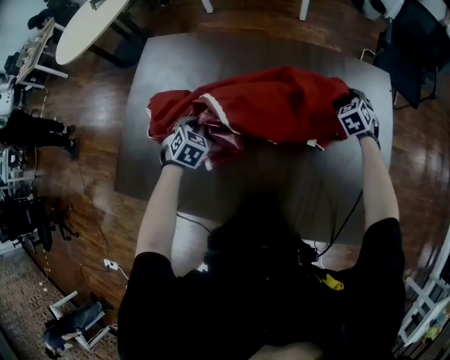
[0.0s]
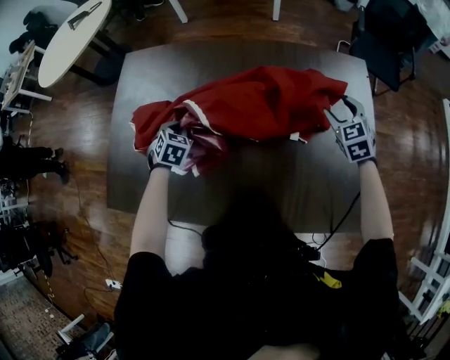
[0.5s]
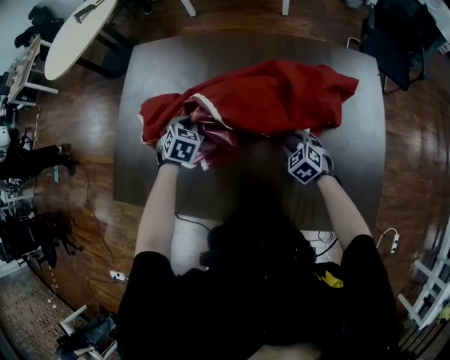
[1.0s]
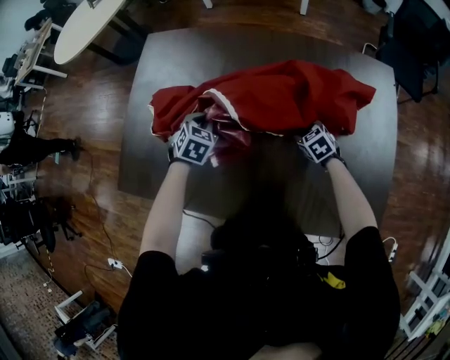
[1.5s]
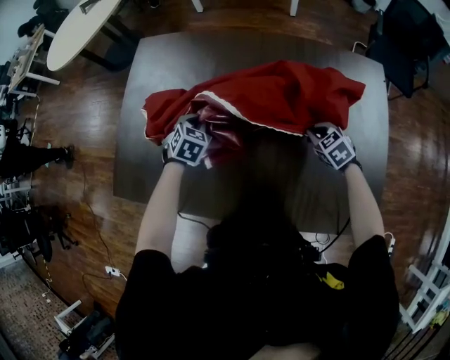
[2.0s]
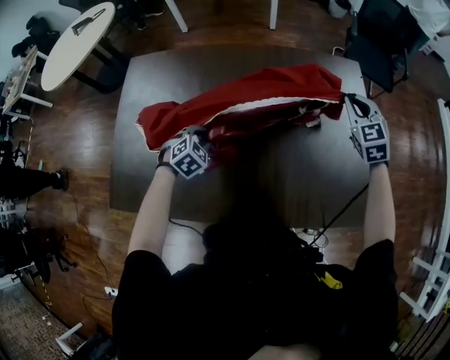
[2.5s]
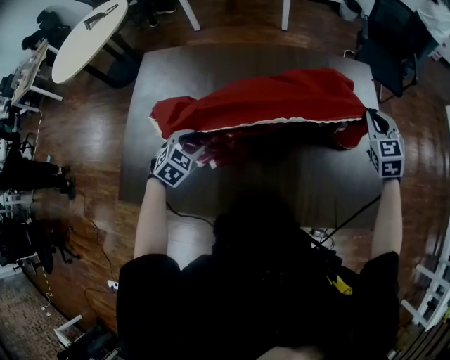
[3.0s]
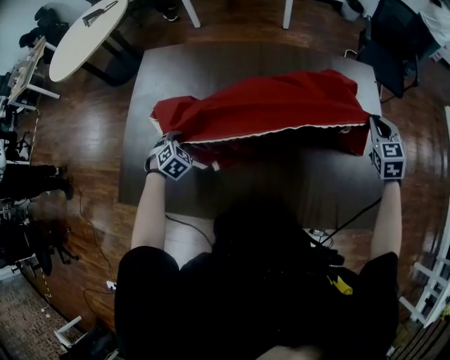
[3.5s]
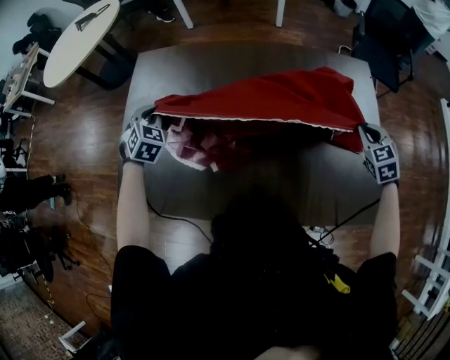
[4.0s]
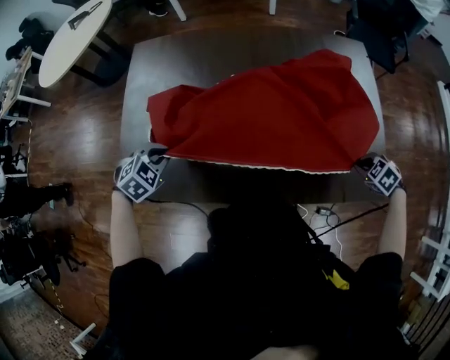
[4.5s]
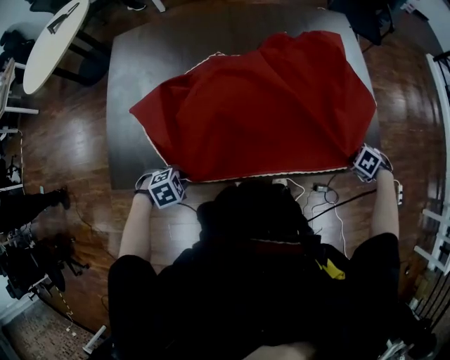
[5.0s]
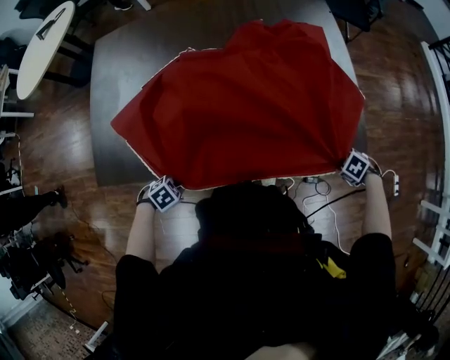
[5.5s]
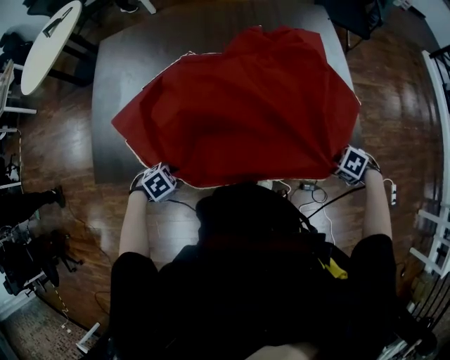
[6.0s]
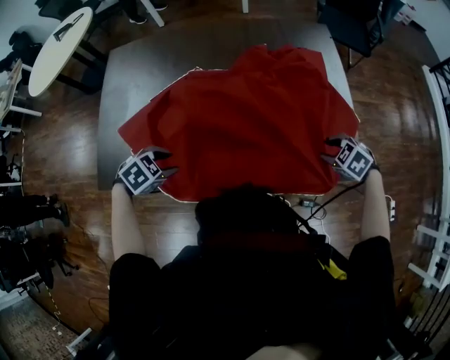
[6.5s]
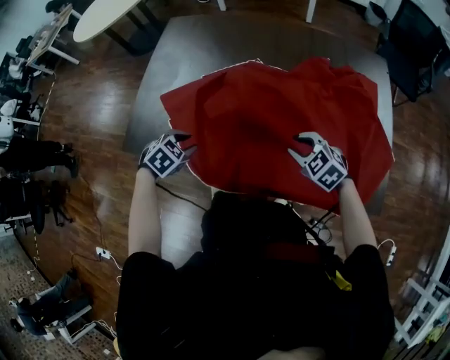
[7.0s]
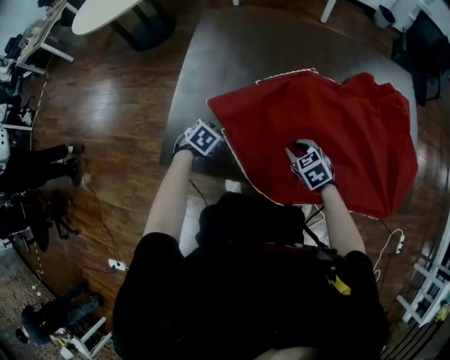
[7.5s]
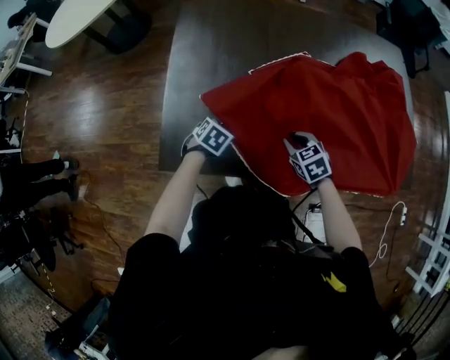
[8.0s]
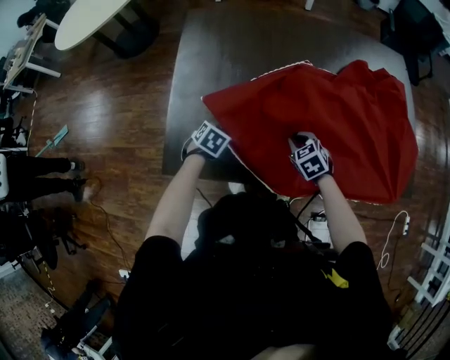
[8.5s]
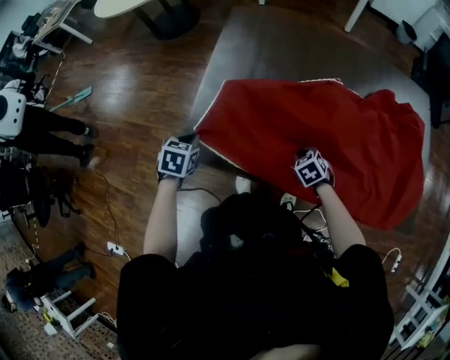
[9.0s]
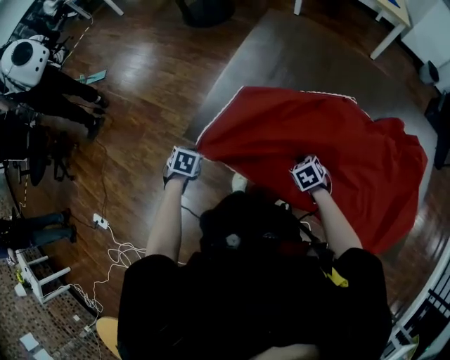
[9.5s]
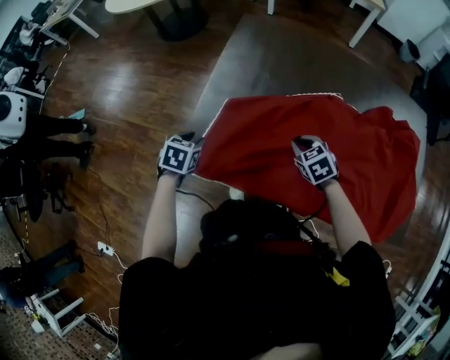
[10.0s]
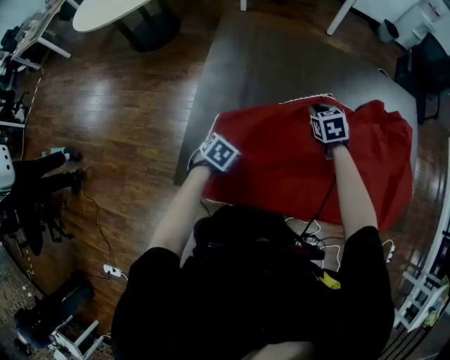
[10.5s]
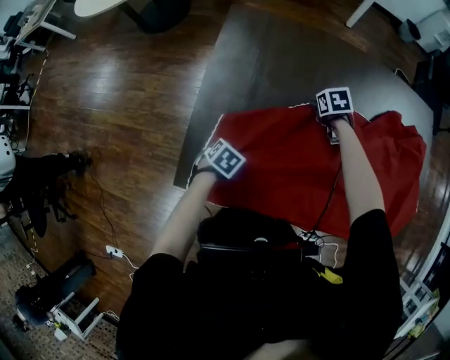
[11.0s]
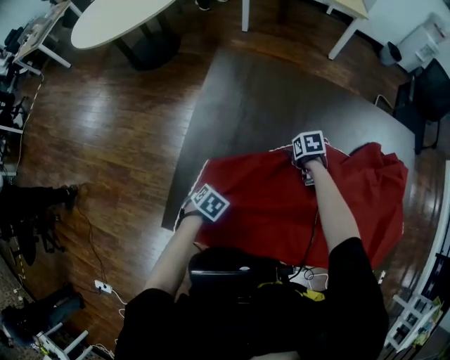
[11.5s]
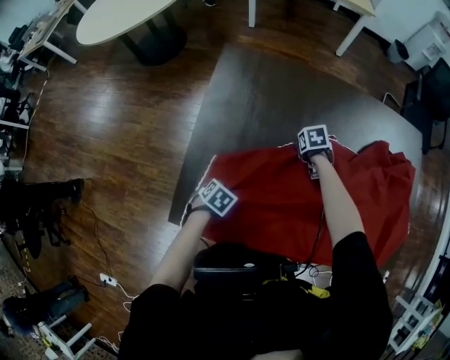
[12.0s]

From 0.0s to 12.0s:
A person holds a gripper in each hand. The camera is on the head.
From 0.0s to 2.0s: The right gripper goes up and down, about 20 cm each way, reversing 2 times, rotates some 30 degrees, and closes its fingers.
From 2.0s to 4.0s: The left gripper goes up and down, roughly 15 cm each way, reversing 2 times, swivels roughly 20 degrees, and opens, then closes again; the right gripper heads upward, covering approximately 15 cm, and turns by about 30 degrees.
From 4.0s to 6.0s: The left gripper changes place by approximately 40 cm, angles its fingers downward, by approximately 40 degrees, and opens up. The right gripper ends up roughly 40 cm from where it was, points its fingers about 30 degrees further downward, and opens its fingers.
From 6.0s to 8.0s: The left gripper goes upward and returns, roughly 10 cm each way, and changes its angle by approximately 30 degrees, while the right gripper travels upward and back again, approximately 10 cm each way, and swivels approximately 40 degrees.
From 8.0s to 10.0s: The right gripper changes place by some 10 cm. Meanwhile the left gripper moves up and down over roughly 10 cm, changing direction 2 times, changes its angle by roughly 30 degrees, and closes, then opens again.
From 10.0s to 12.0s: The left gripper changes place by approximately 15 cm, and turns by approximately 30 degrees. Meanwhile the right gripper ends up some 25 cm from where it was, rotates approximately 40 degrees, and opens its fingers.

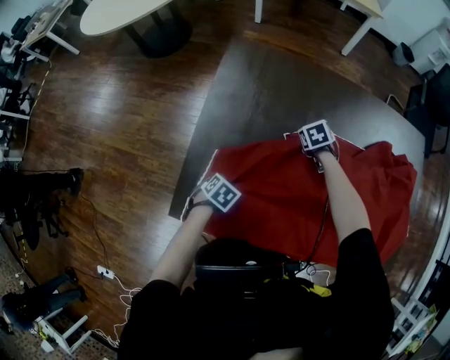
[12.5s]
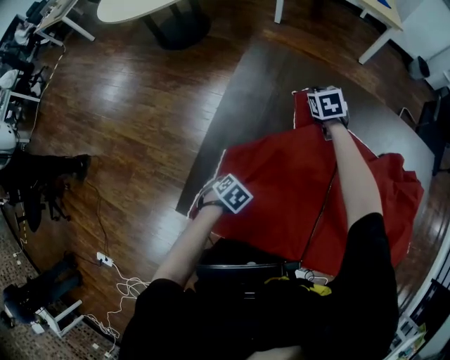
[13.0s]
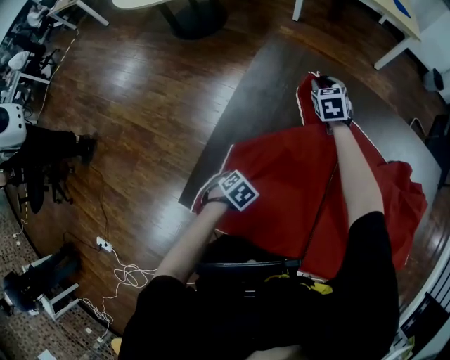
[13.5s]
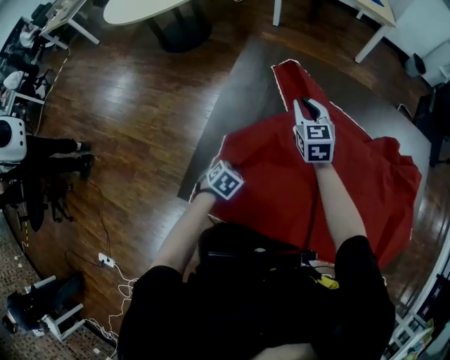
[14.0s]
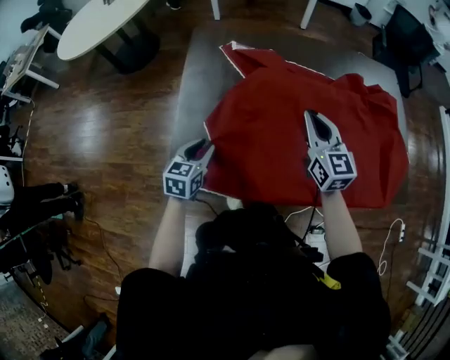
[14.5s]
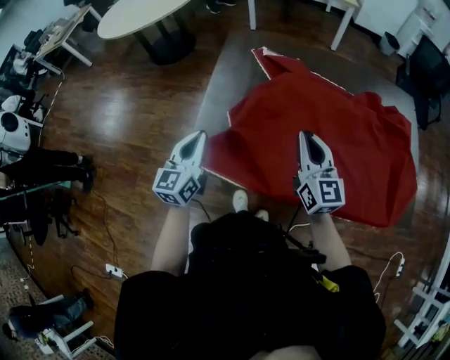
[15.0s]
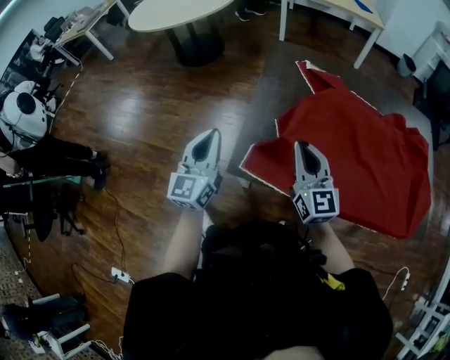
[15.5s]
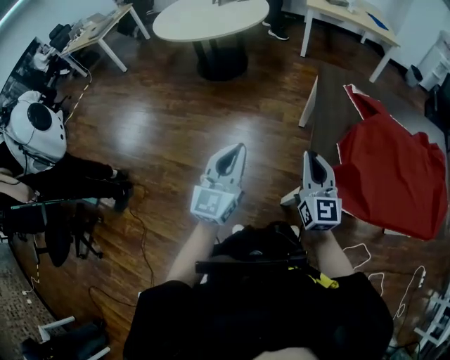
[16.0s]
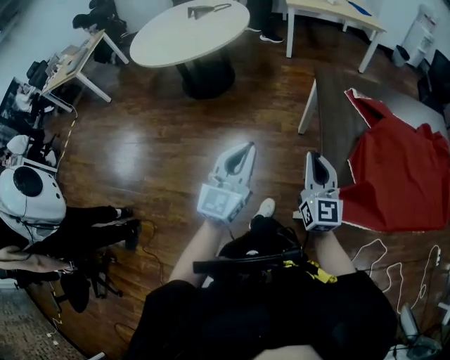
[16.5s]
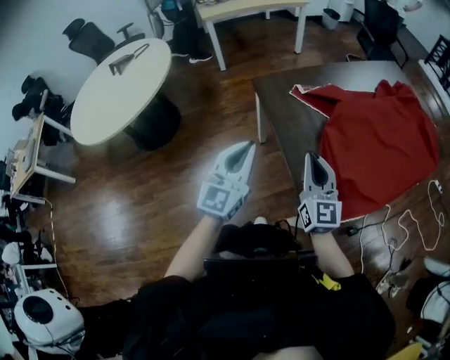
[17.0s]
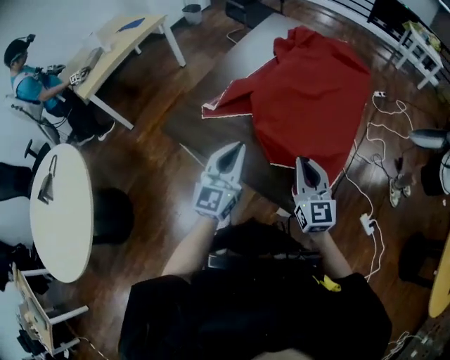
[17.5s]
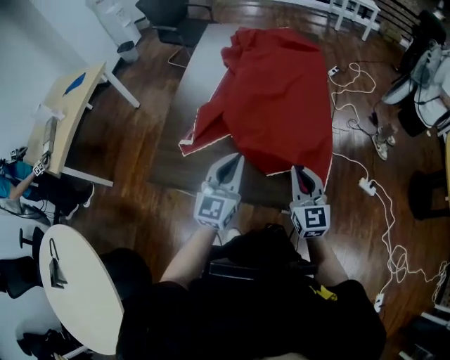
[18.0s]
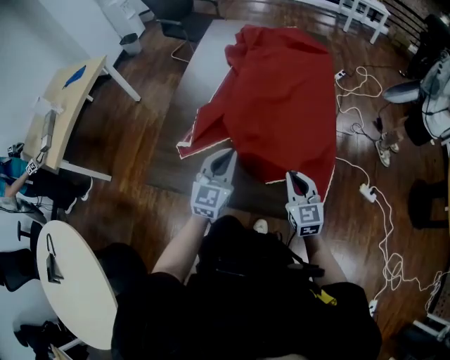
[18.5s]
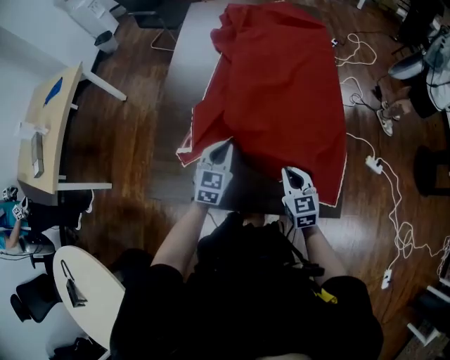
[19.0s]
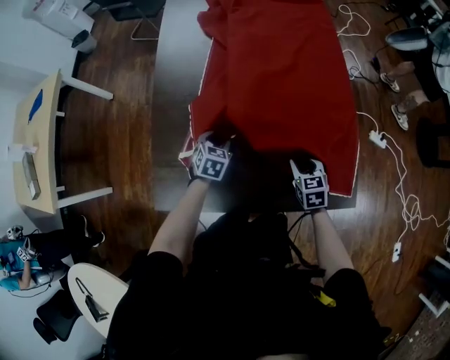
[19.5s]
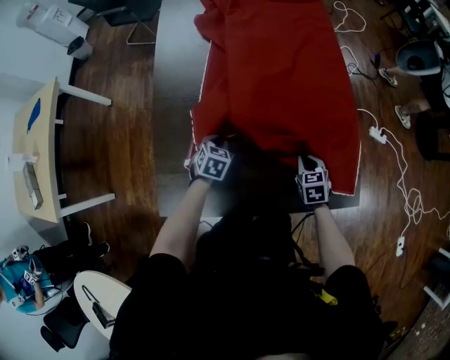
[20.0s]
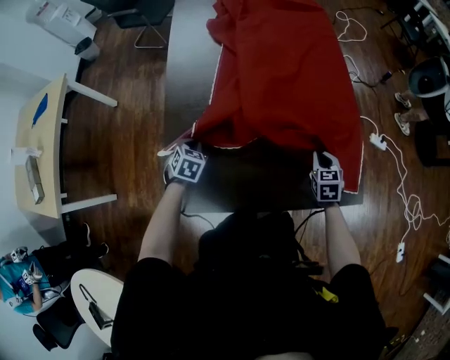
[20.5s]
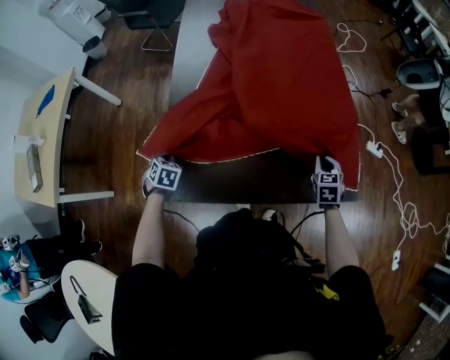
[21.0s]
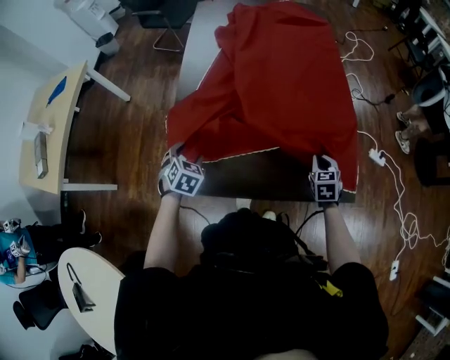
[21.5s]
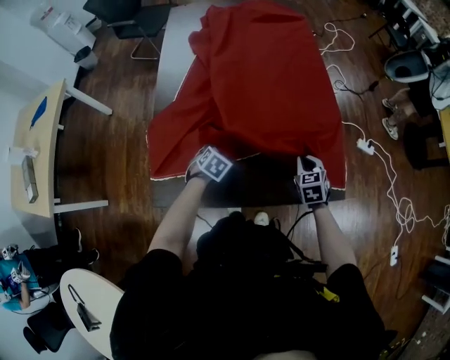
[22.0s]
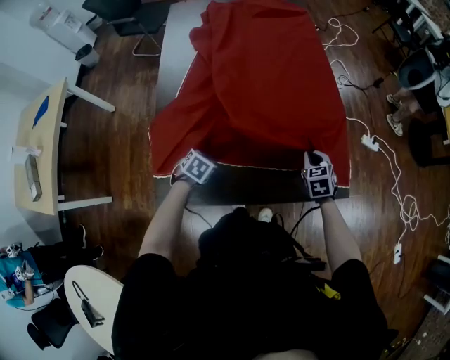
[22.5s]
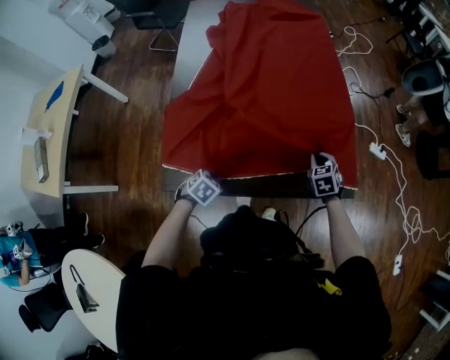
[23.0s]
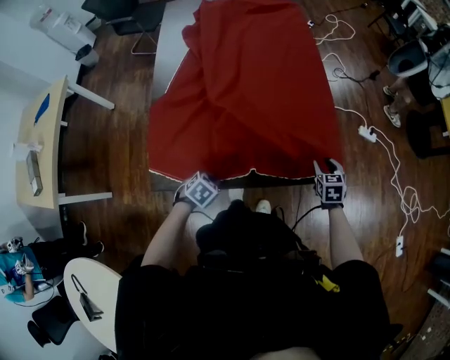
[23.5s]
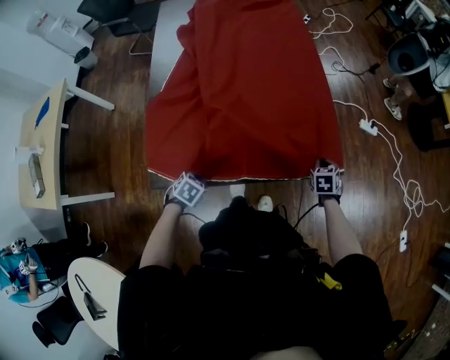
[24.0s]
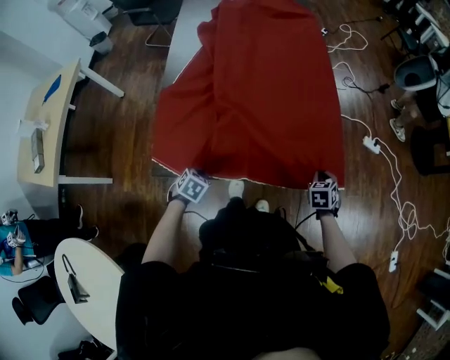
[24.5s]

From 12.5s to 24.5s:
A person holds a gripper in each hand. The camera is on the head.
From 12.5s to 14.5s: The right gripper heads upward, covering about 25 cm, and angles its fingers upward, by roughly 60 degrees; the left gripper shifts approximately 15 cm upward, and tilts its fingers about 40 degrees upward.
From 14.5s to 16.5s: Both grippers are carried to the left, approximately 50 cm. The left gripper heads upward, covering about 20 cm, and angles its fingers upward, by about 40 degrees.
From 16.5s to 18.5s: The right gripper ends up about 30 cm from where it was, and turns by roughly 80 degrees. The left gripper moves about 50 cm, and rotates approximately 80 degrees.
From 18.5s to 20.5s: The right gripper goes some 15 cm downward and forward, turns by approximately 40 degrees, and opens, then closes again; the left gripper heads to the left, downward and forward, covering some 35 cm, tilts its fingers some 50 degrees downward, and opens and closes again.
From 20.5s to 22.5s: The left gripper swings left and right, approximately 25 cm each way, with 2 reversals, and opens, then closes again.
From 22.5s to 24.5s: The right gripper moves roughly 15 cm, and opens and closes again; the left gripper changes place by some 15 cm.

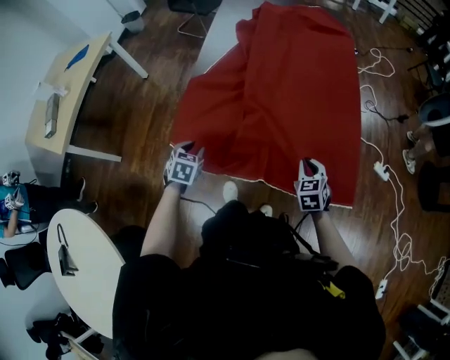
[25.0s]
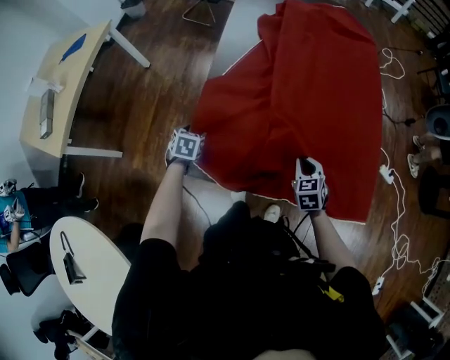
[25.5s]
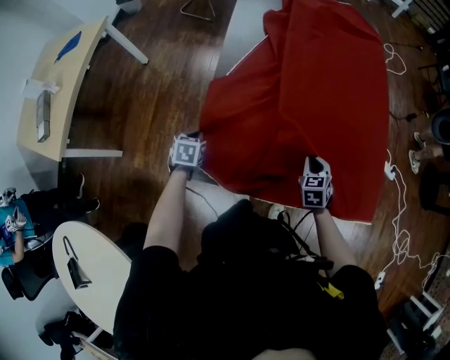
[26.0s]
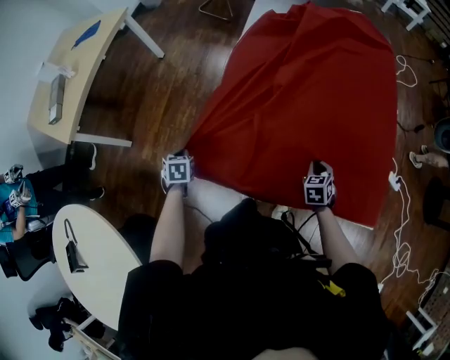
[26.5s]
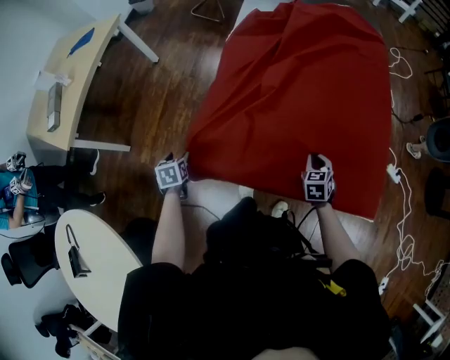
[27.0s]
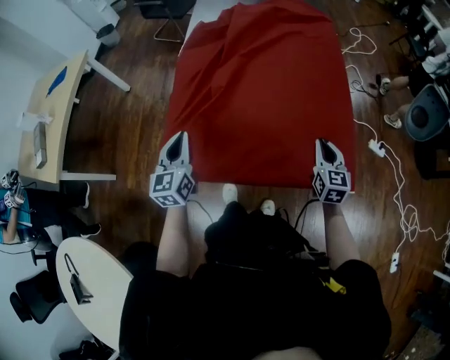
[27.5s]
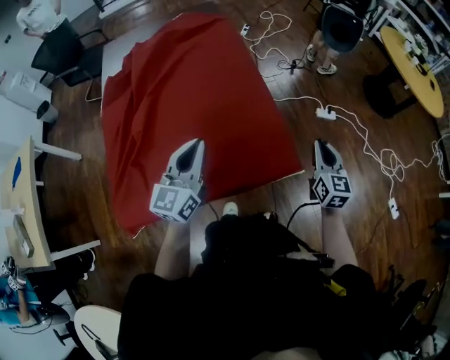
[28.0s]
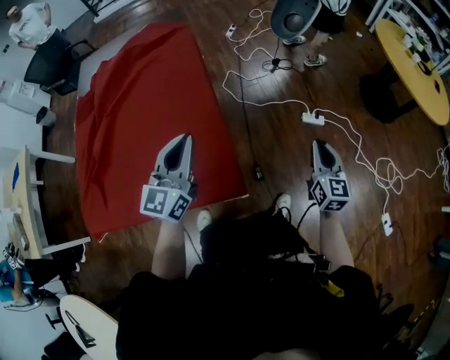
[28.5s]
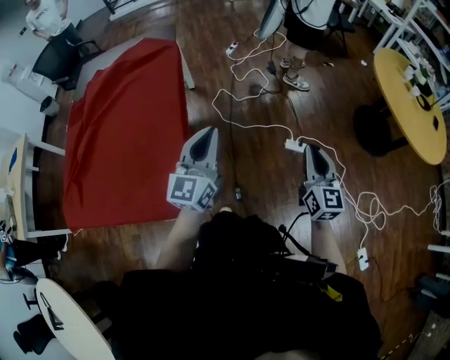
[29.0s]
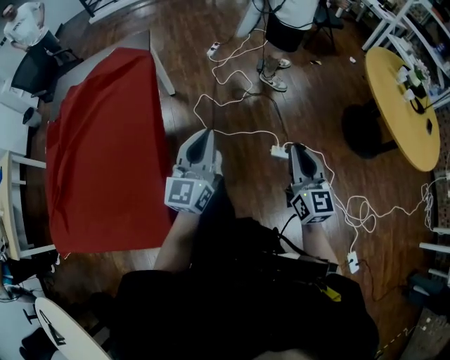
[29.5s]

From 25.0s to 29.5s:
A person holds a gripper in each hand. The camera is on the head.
From 25.0s to 27.0s: The right gripper is displaced to the left, forward and downward by about 15 cm. Meanwhile the left gripper moves to the left, about 20 cm, changes its angle by roughly 30 degrees, and opens up.
From 27.0s to 29.5s: The pair of grippers is taken approximately 1 m. The left gripper tips its fingers upward by about 60 degrees, and closes its fingers. The right gripper tilts its fingers approximately 50 degrees upward.
